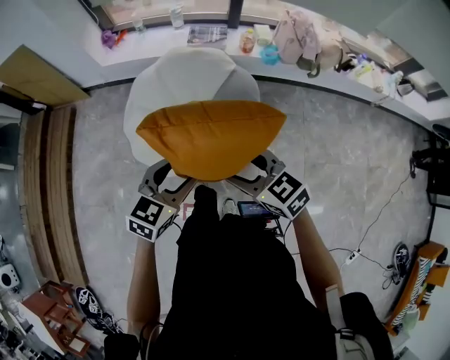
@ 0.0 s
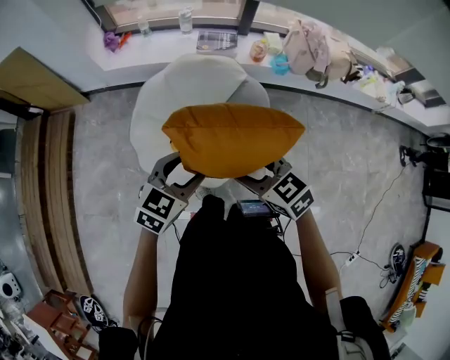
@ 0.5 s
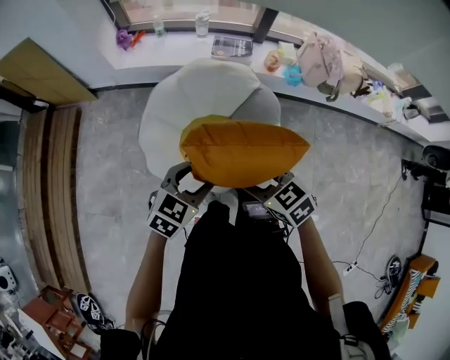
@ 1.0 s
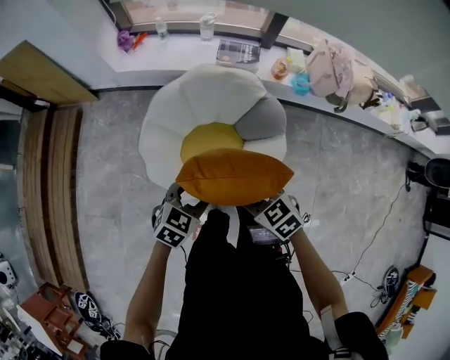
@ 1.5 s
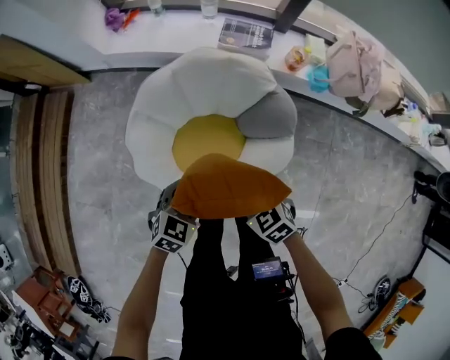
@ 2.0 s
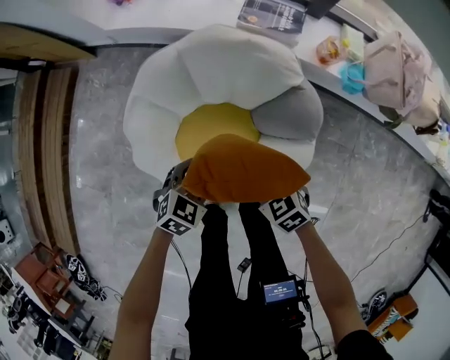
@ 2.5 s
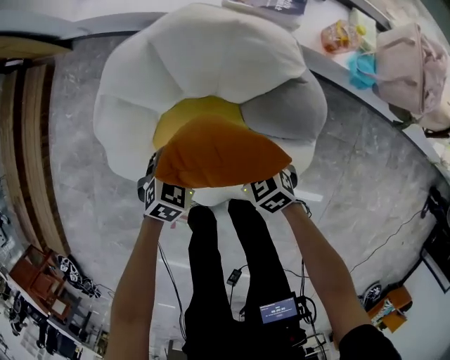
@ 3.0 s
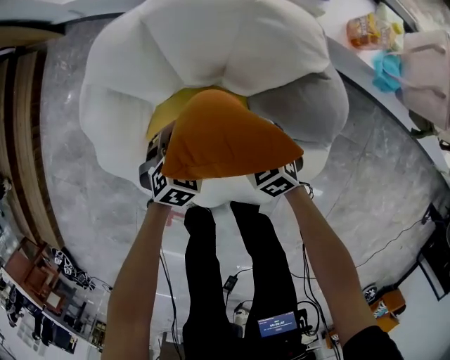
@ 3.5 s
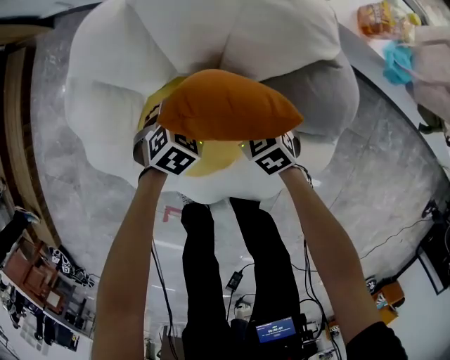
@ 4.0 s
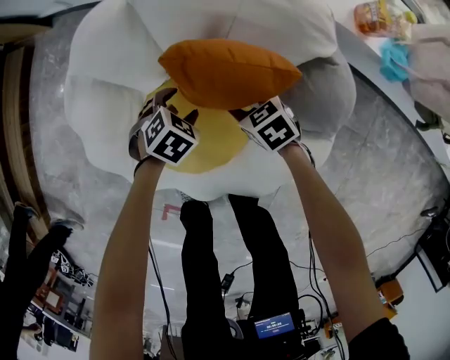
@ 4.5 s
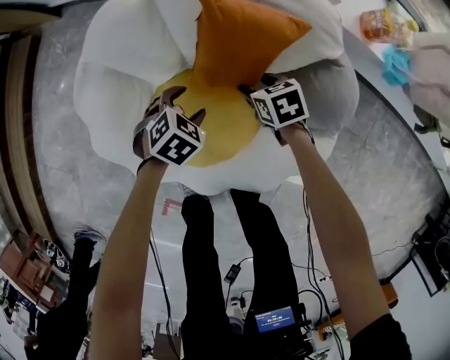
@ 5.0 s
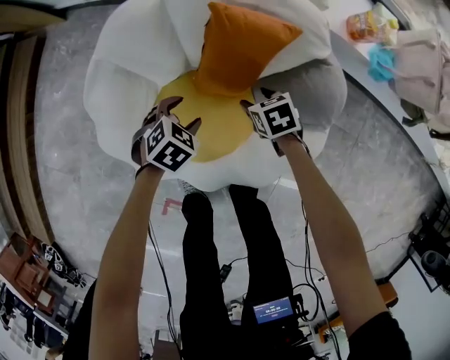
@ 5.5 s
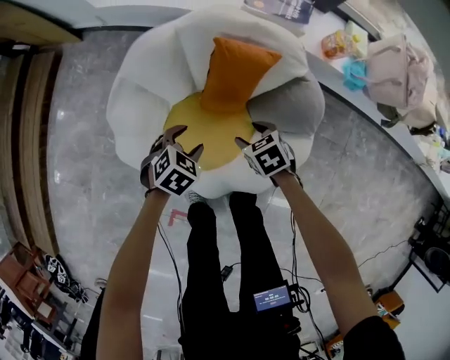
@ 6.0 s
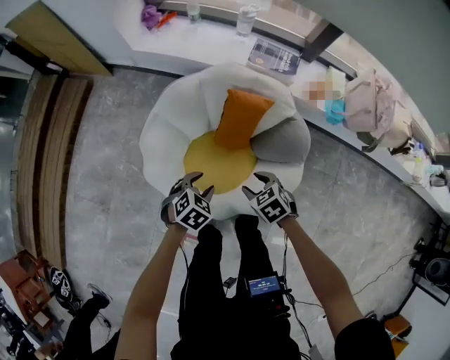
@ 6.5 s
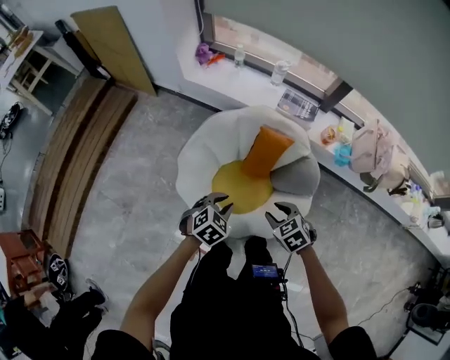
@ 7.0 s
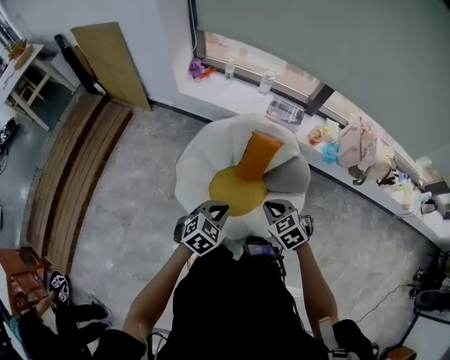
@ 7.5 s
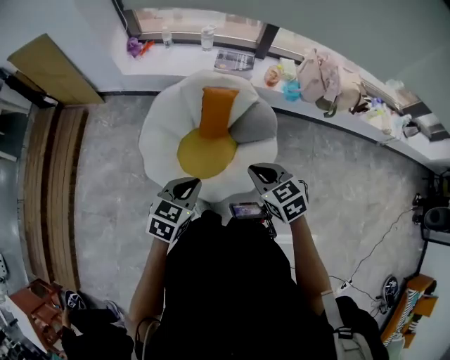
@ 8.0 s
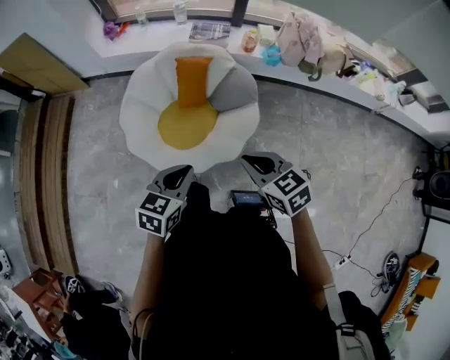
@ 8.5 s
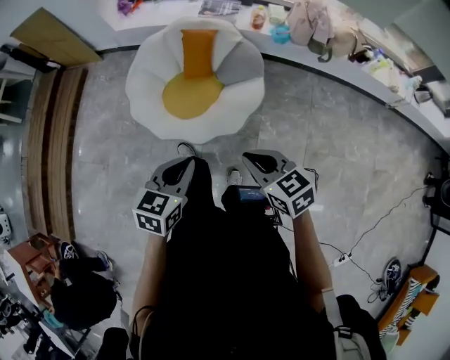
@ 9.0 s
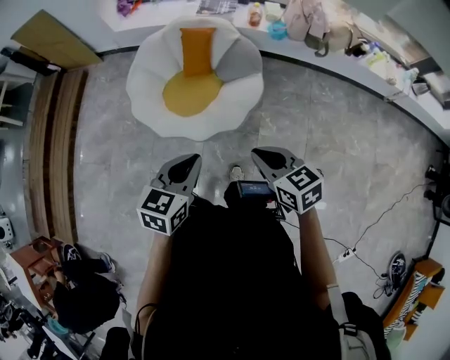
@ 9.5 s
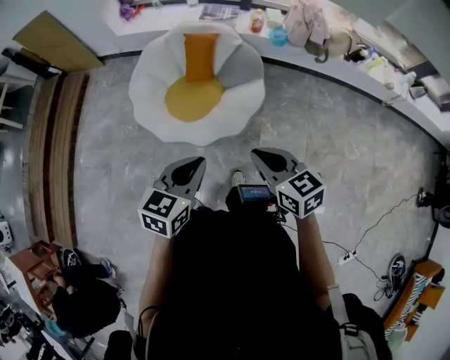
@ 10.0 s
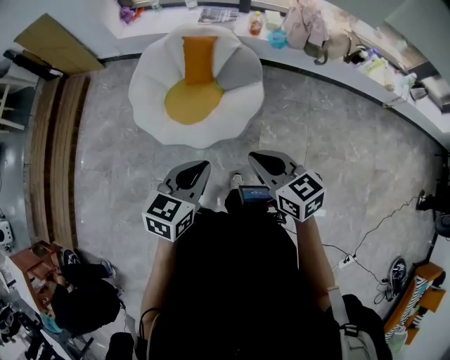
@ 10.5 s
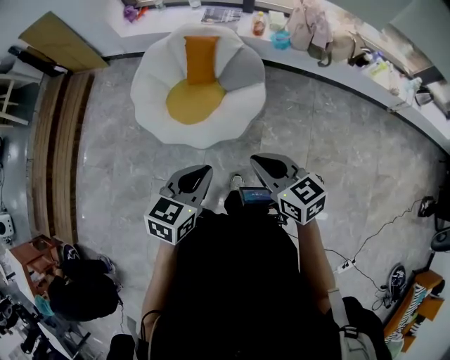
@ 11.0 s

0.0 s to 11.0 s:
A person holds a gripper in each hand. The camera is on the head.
0.0 to 2.0 s: The two grippers go about 30 cm downward and forward.
2.0 to 3.5 s: The grippers both shift downward and forward by some 35 cm.
3.5 to 5.5 s: The right gripper turns by about 30 degrees. Meanwhile the left gripper reaches roughly 10 cm downward, then returns.
5.5 to 7.5 s: Both grippers move upward and backward, about 50 cm. The left gripper turns by roughly 20 degrees, and closes; the right gripper swivels approximately 30 degrees, and closes its fingers.
7.5 to 9.0 s: Both grippers travel together backward and to the right, about 35 cm. The right gripper changes its angle by approximately 30 degrees. The left gripper swivels roughly 20 degrees.
9.0 to 11.0 s: The left gripper ends up some 5 cm from where it was.

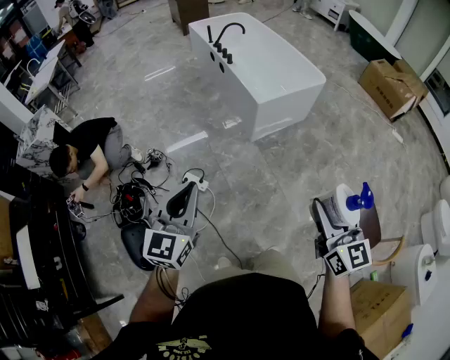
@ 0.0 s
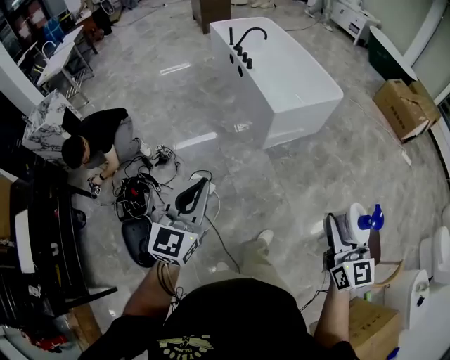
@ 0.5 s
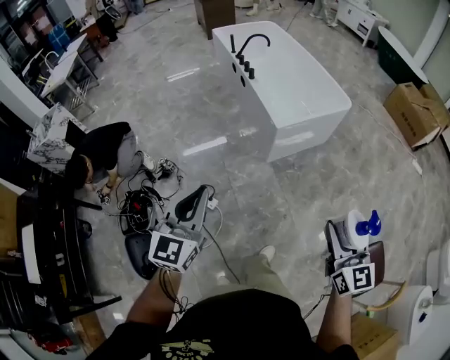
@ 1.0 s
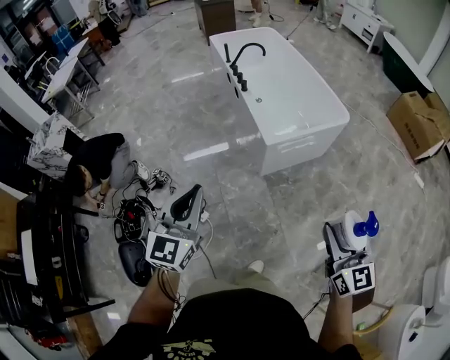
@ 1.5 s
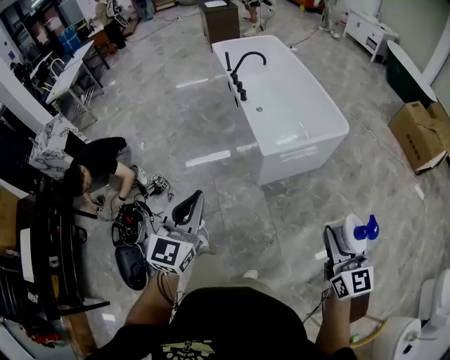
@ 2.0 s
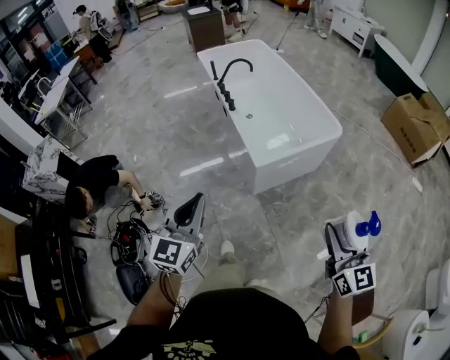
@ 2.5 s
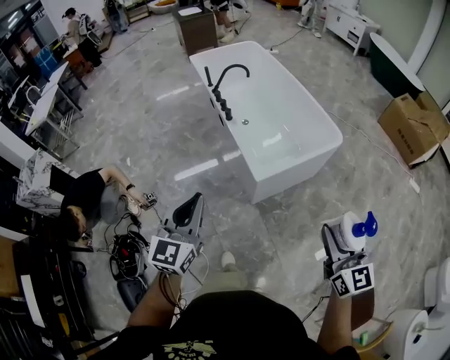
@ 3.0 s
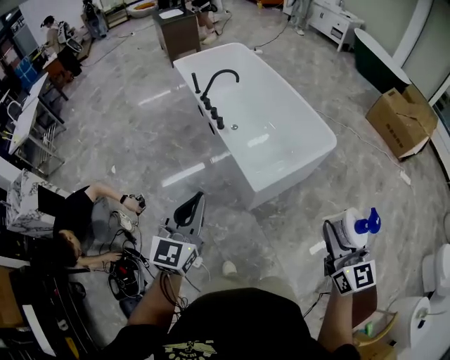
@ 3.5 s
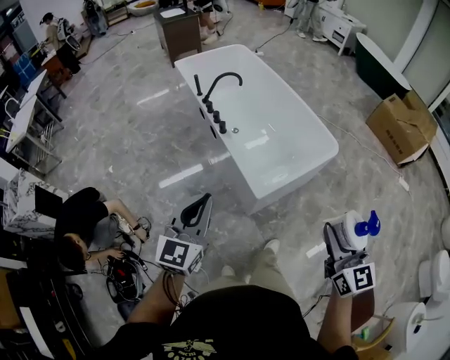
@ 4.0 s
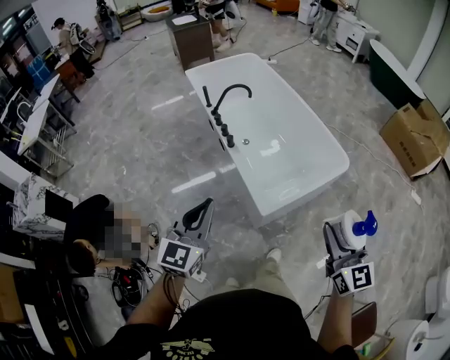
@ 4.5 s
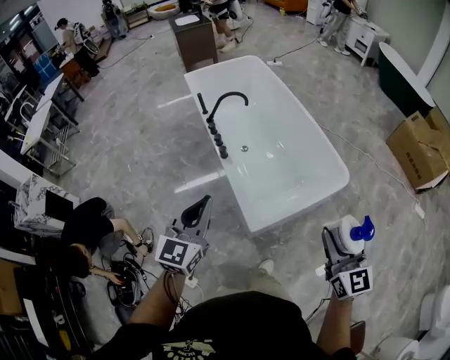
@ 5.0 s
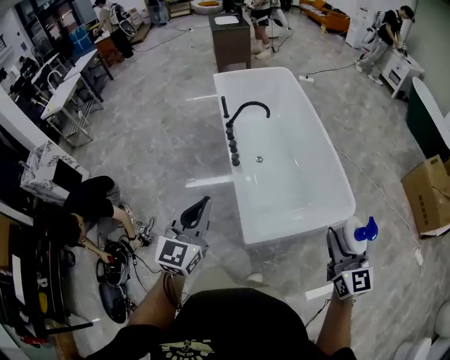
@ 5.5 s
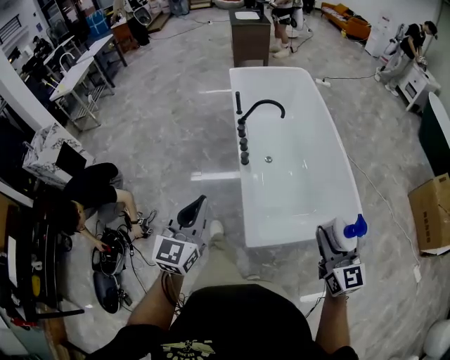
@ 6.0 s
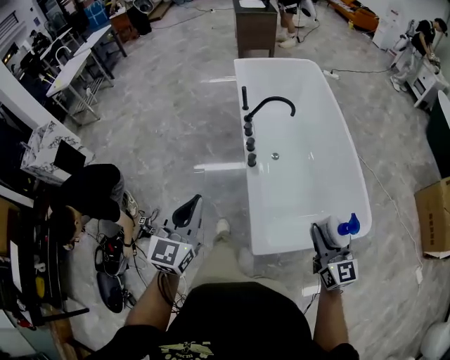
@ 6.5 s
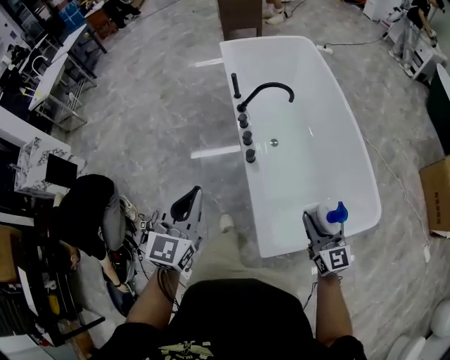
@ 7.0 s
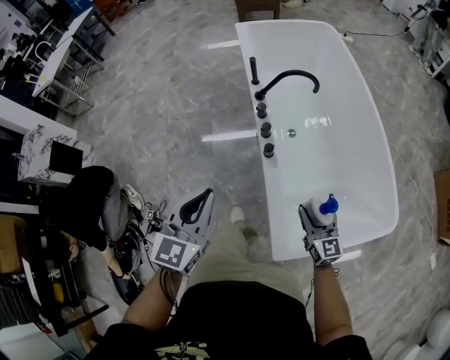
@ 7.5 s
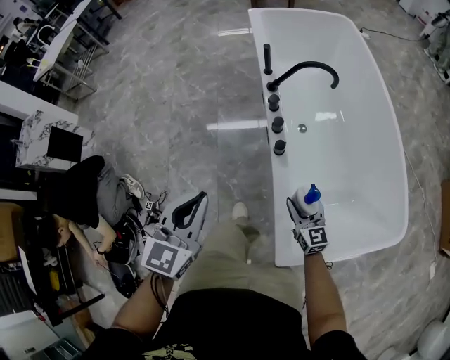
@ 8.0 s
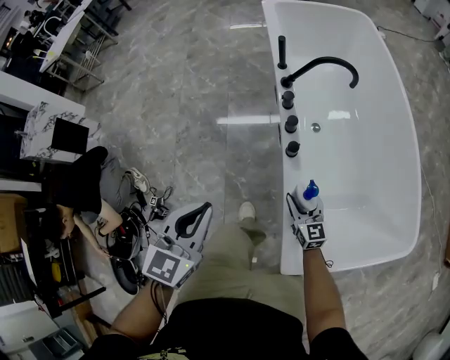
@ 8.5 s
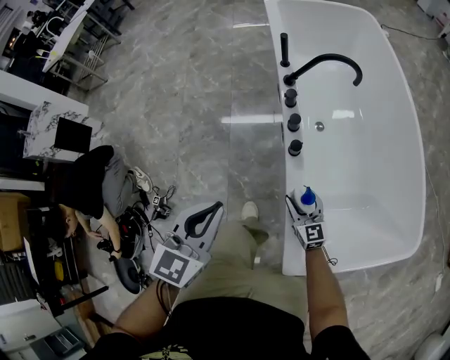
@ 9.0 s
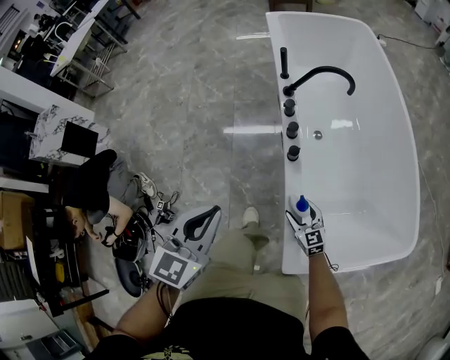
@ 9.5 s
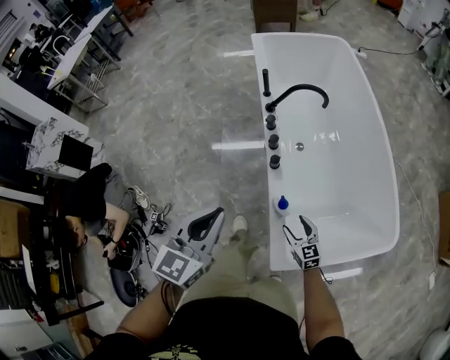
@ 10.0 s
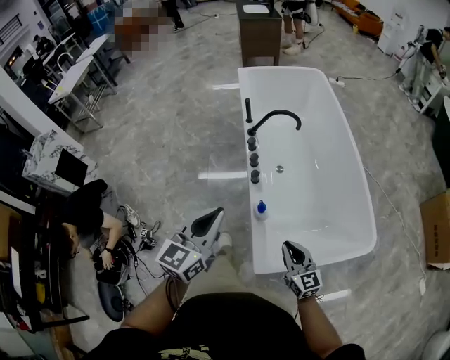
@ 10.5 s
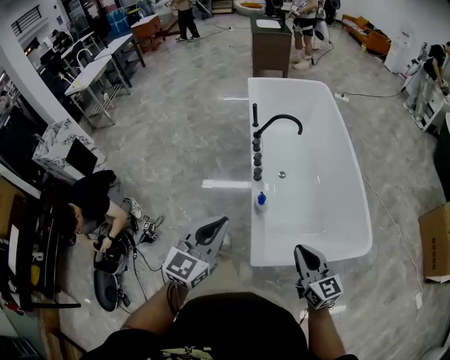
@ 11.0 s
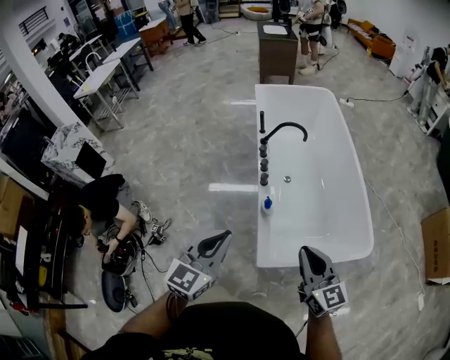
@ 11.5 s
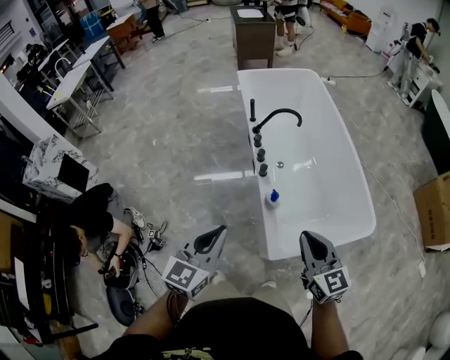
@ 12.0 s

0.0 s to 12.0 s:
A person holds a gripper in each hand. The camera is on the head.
0.0 to 2.0 s: The two grippers go about 30 cm forward and to the right.
2.0 to 4.0 s: The left gripper moves forward, some 30 cm. The right gripper moves forward and to the left, roughly 25 cm.
4.0 to 6.0 s: The right gripper travels forward by some 30 cm, and rotates about 20 degrees. Meanwhile the left gripper shifts about 20 cm forward, and swivels some 30 degrees.
6.0 to 8.0 s: The left gripper moves forward, downward and to the left, roughly 30 cm. The right gripper heads downward, forward and to the left, covering about 50 cm.
8.0 to 10.0 s: The right gripper heads backward, covering approximately 5 cm, and goes downward and returns, some 10 cm each way. The left gripper heads upward and to the right, covering approximately 10 cm.
10.0 to 12.0 s: The left gripper shifts roughly 15 cm backward and upward. The right gripper goes about 40 cm upward, and closes its fingers.

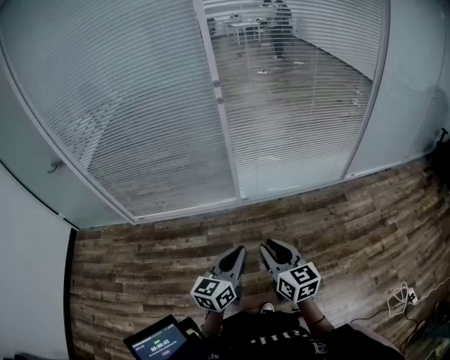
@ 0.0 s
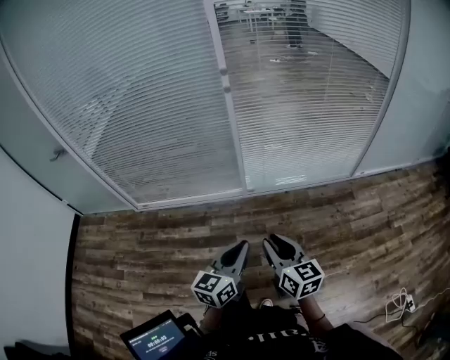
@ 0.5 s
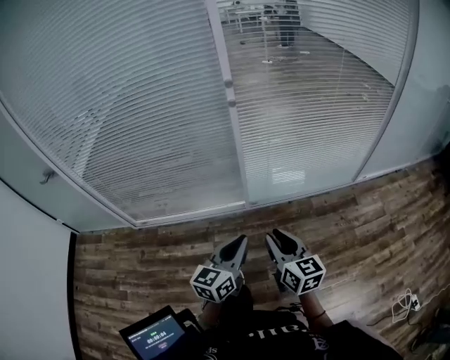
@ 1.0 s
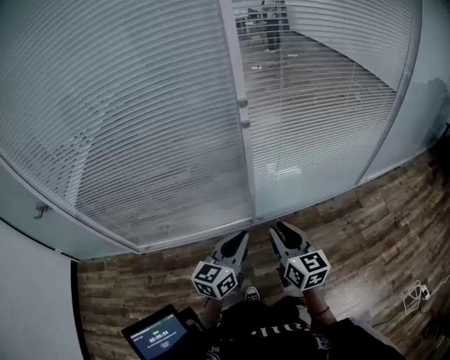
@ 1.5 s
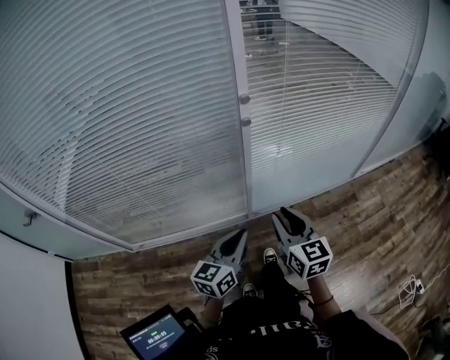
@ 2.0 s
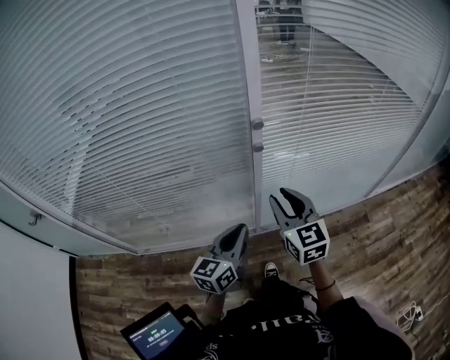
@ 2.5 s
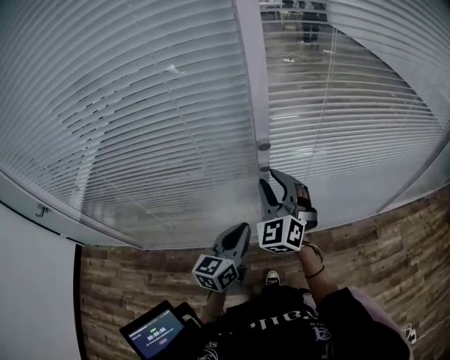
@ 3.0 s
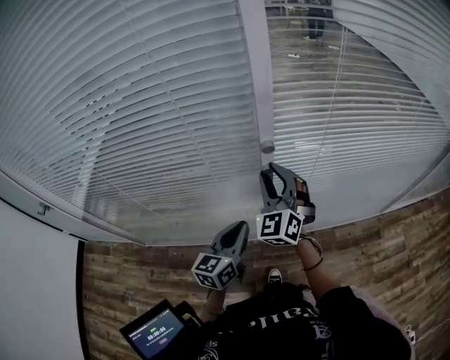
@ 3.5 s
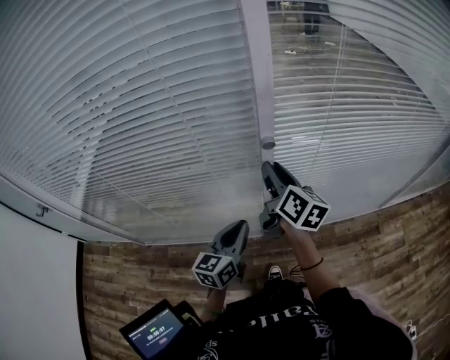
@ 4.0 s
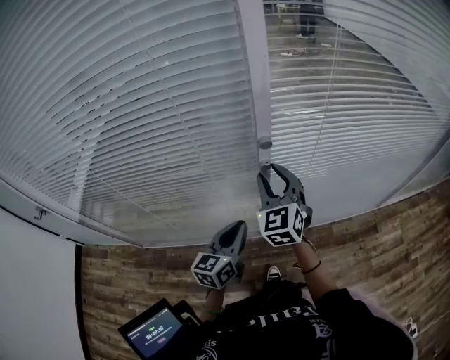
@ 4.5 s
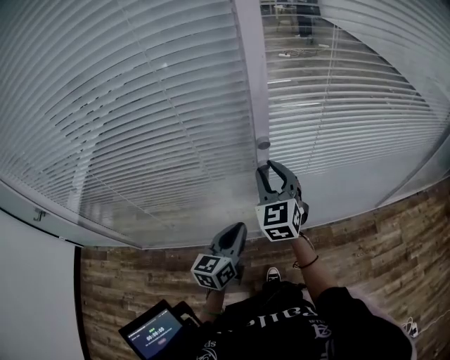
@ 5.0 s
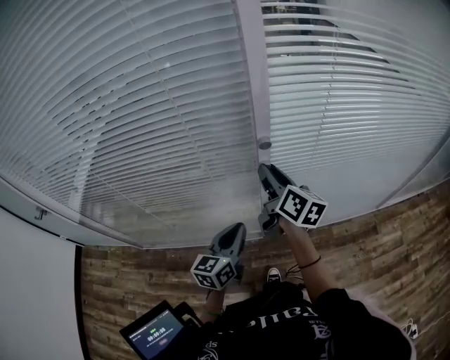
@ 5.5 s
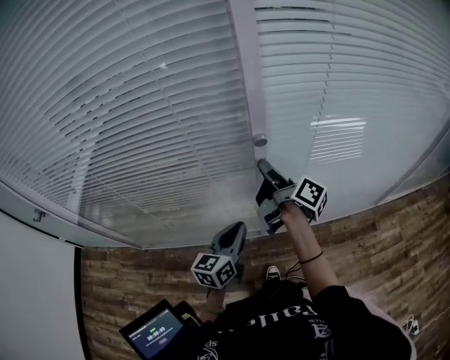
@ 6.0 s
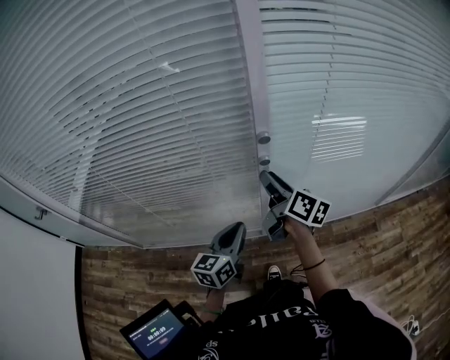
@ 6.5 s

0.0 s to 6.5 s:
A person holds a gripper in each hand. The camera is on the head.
0.0 to 2.0 s: The pair of grippers is taken forward, roughly 40 cm.
2.0 to 4.5 s: Both grippers move forward, about 25 cm. The right gripper swivels approximately 30 degrees.
4.5 to 6.5 s: The right gripper rolls clockwise, seen from behind, by roughly 80 degrees.
